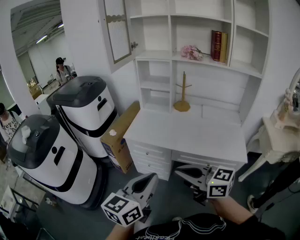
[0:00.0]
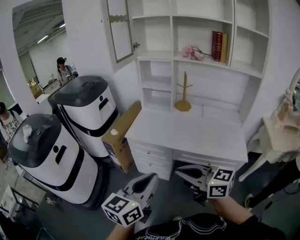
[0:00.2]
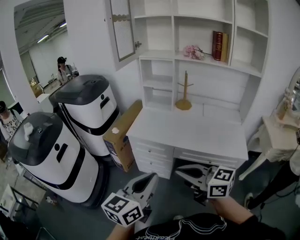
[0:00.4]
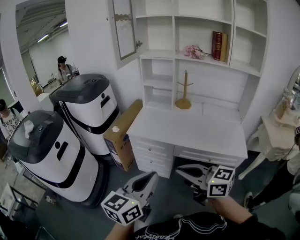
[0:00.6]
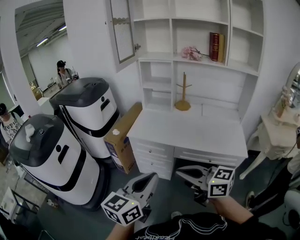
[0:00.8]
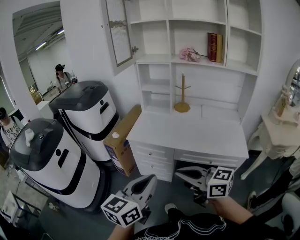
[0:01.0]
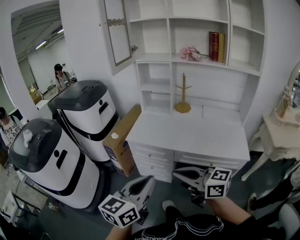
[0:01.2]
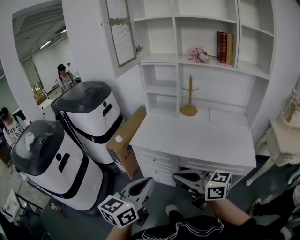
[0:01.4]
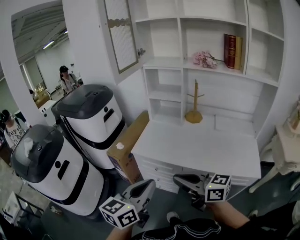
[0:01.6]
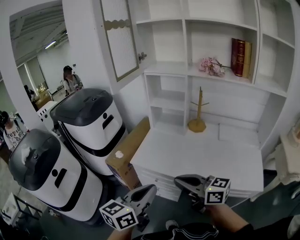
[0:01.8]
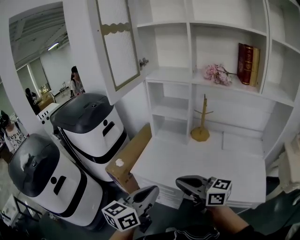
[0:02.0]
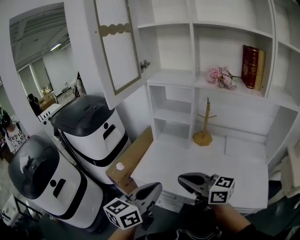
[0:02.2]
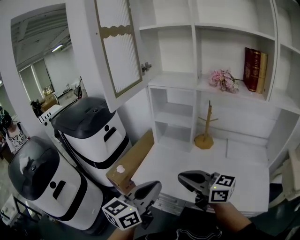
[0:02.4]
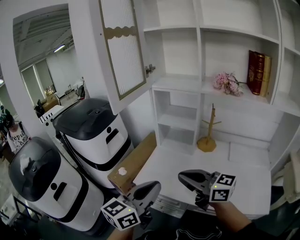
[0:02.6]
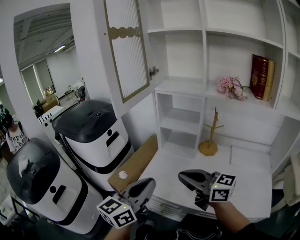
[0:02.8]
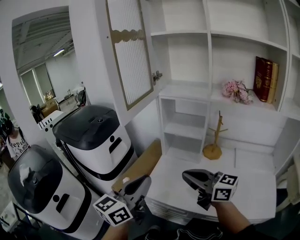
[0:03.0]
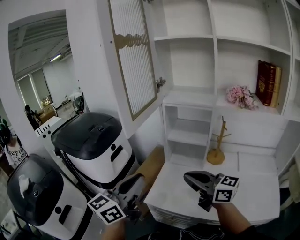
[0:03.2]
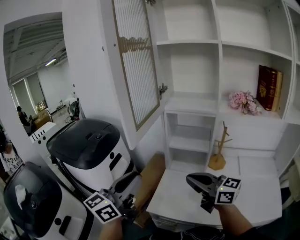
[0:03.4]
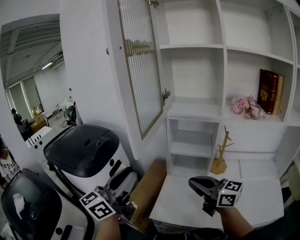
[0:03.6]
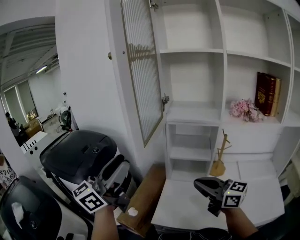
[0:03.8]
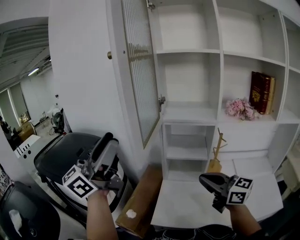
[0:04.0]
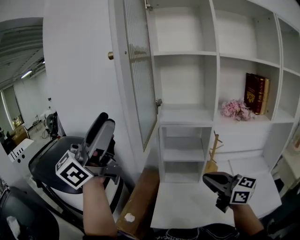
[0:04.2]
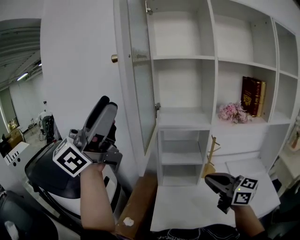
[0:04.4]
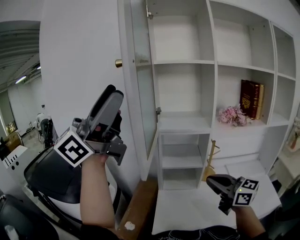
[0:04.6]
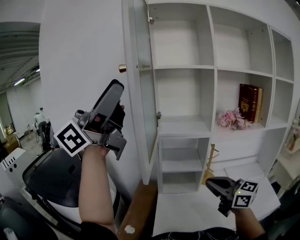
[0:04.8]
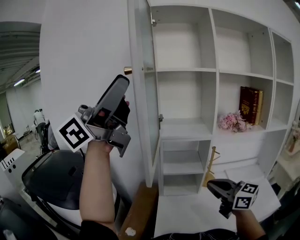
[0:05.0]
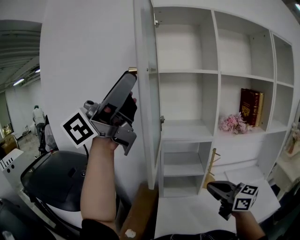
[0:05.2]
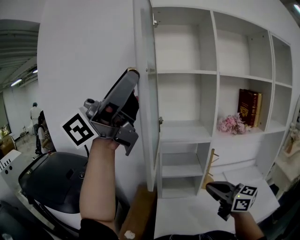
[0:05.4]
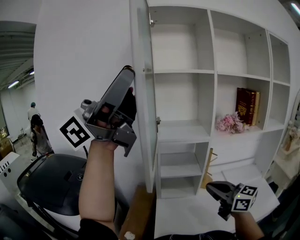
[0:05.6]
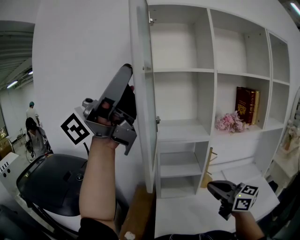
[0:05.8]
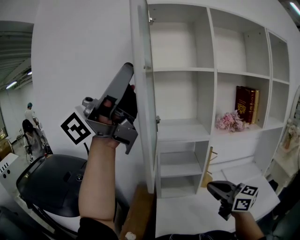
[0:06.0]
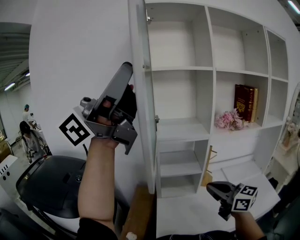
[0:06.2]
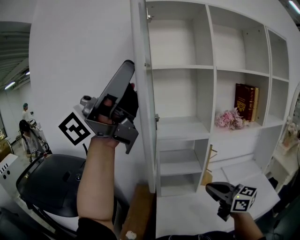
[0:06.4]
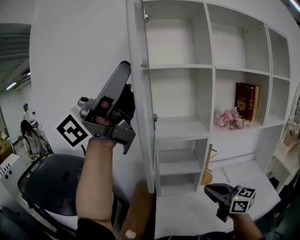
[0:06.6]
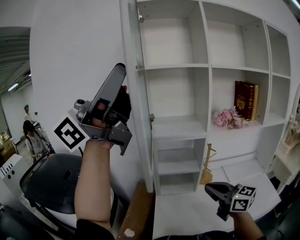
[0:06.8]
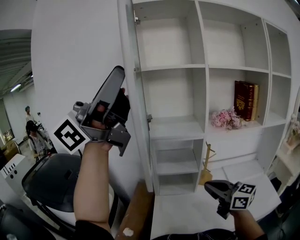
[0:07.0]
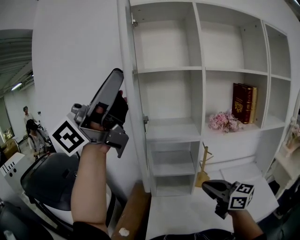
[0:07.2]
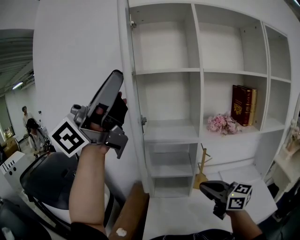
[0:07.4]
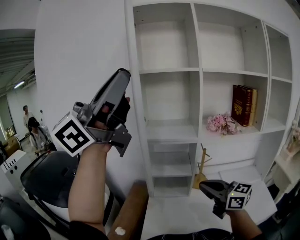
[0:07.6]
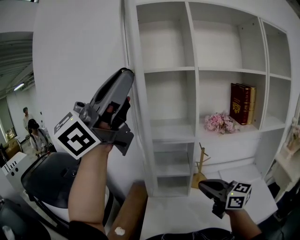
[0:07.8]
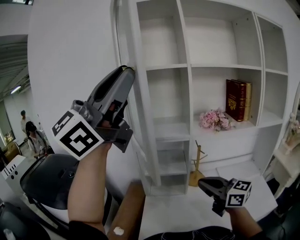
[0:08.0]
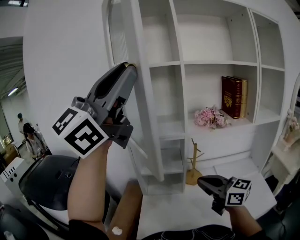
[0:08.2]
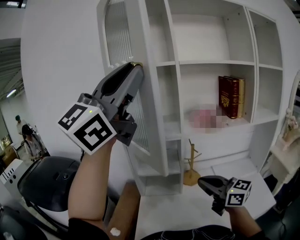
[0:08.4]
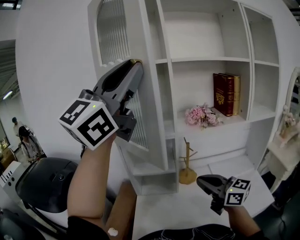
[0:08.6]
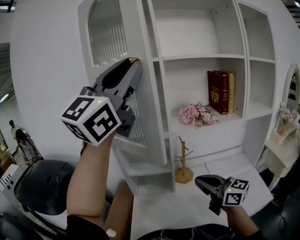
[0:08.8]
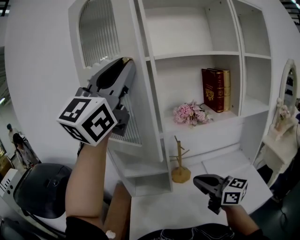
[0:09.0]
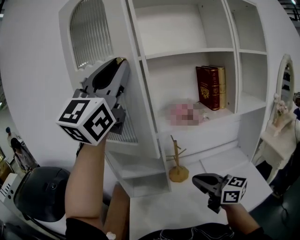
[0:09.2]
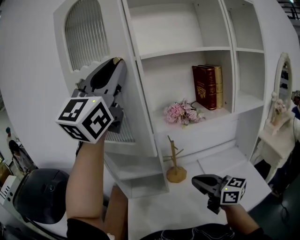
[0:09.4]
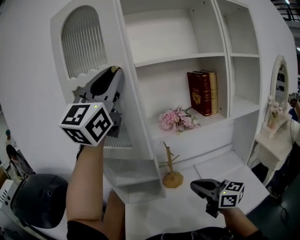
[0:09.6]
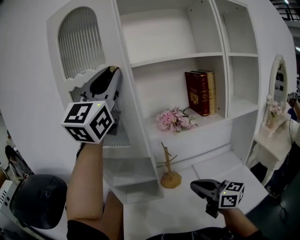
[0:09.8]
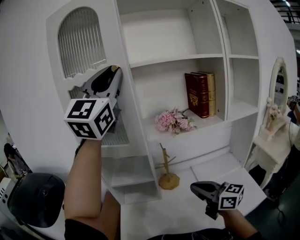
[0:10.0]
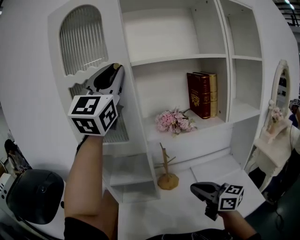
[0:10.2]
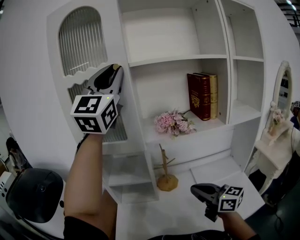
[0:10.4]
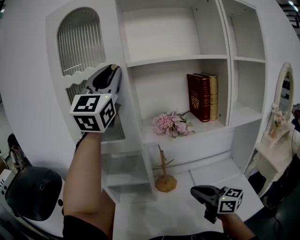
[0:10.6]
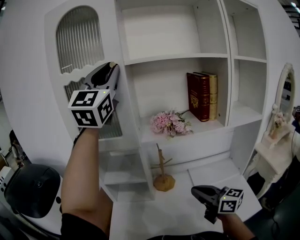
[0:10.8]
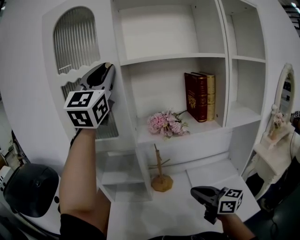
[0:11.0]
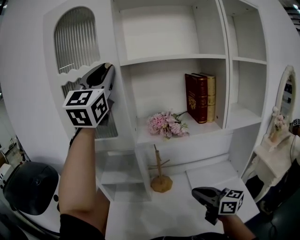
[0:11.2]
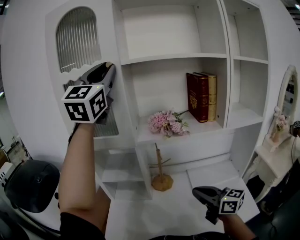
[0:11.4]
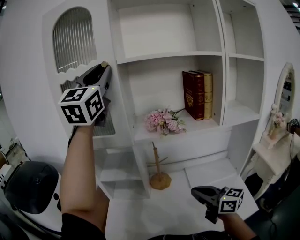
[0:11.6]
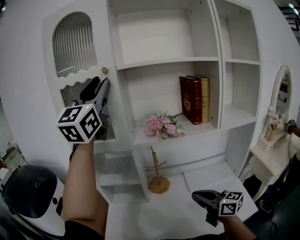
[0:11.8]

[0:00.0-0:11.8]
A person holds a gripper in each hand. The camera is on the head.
0.0 to 1.4 s: The right gripper moves about 5 cm; the left gripper changes place by approximately 5 cm.
1.4 to 3.0 s: The two grippers go some 35 cm forward.
3.0 to 4.4 s: The left gripper is displaced upward by about 30 cm, points its fingers some 40 degrees further upward, and opens; the right gripper ends up about 10 cm from where it was, and rotates some 30 degrees.
4.4 to 6.0 s: The left gripper shifts roughly 10 cm upward, rotates approximately 30 degrees, and closes up.
6.0 to 7.4 s: The left gripper shifts by some 5 cm.
7.4 to 8.8 s: The right gripper is displaced to the right by some 10 cm, while the left gripper shifts about 20 cm to the right and forward, and swivels approximately 30 degrees.
8.8 to 10.4 s: The right gripper is displaced to the right by about 10 cm. Meanwhile the left gripper heads forward and to the right, covering about 15 cm, and rotates approximately 20 degrees.
10.4 to 11.8 s: The right gripper shifts some 5 cm to the right.

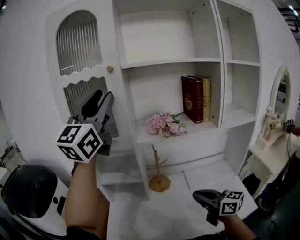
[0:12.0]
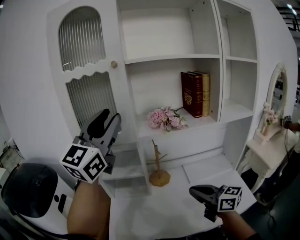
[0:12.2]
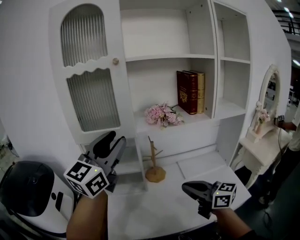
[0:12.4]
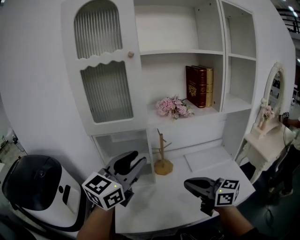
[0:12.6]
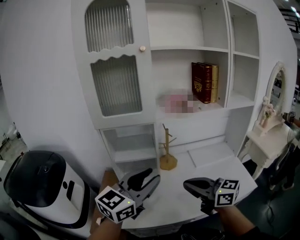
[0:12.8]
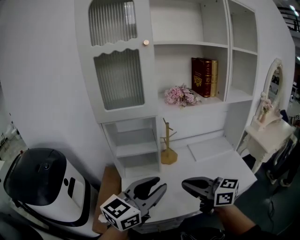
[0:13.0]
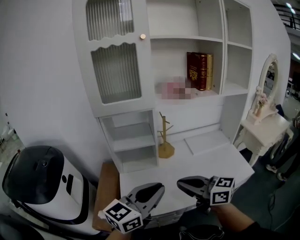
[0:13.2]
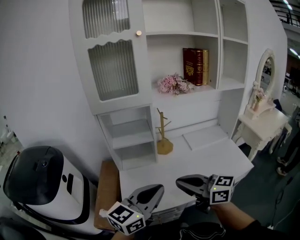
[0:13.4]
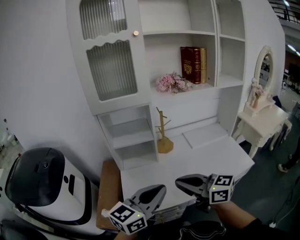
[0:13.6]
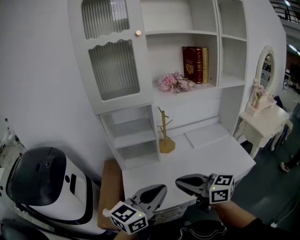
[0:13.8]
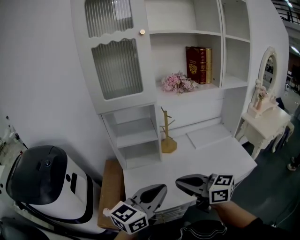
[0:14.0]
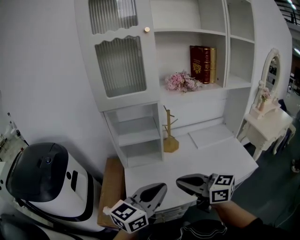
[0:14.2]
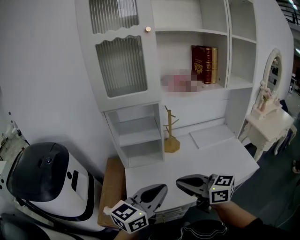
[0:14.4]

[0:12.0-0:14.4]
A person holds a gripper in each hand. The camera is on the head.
12.0 to 13.2 s: The right gripper heads to the left and backward, covering roughly 25 cm. The left gripper goes roughly 40 cm downward and backward, and swivels about 50 degrees.
13.2 to 14.4 s: The grippers move only a little.

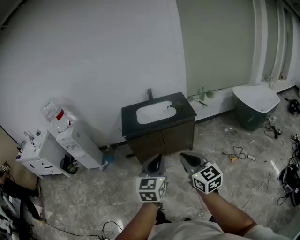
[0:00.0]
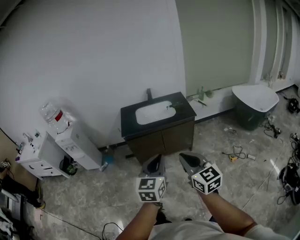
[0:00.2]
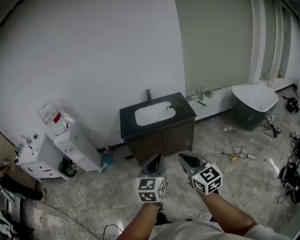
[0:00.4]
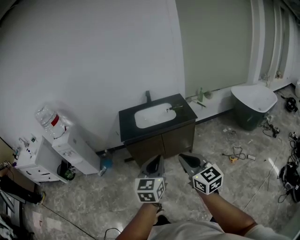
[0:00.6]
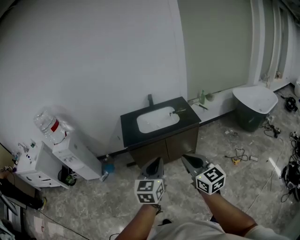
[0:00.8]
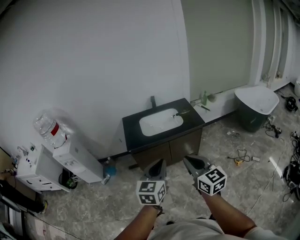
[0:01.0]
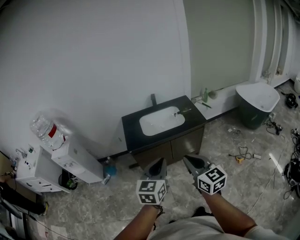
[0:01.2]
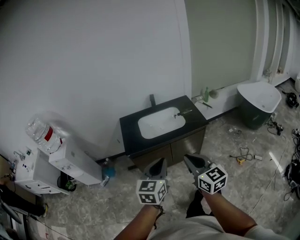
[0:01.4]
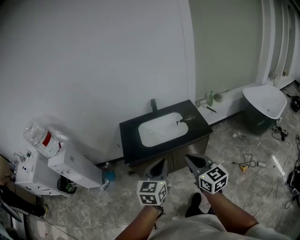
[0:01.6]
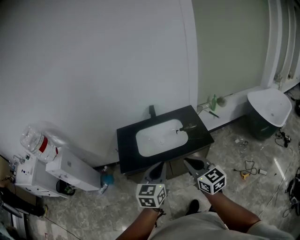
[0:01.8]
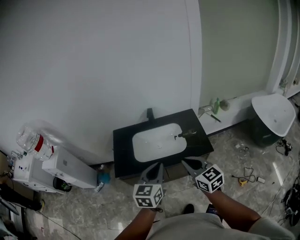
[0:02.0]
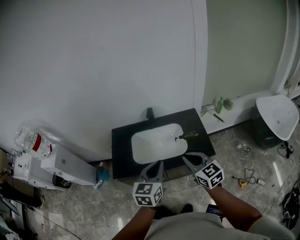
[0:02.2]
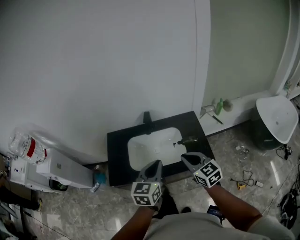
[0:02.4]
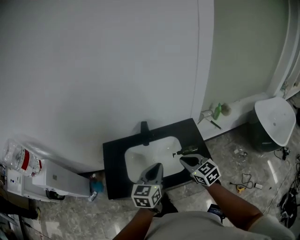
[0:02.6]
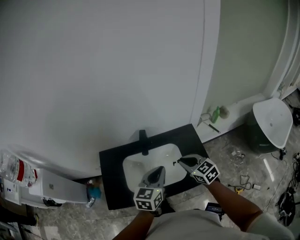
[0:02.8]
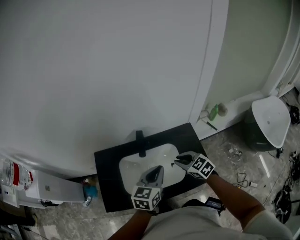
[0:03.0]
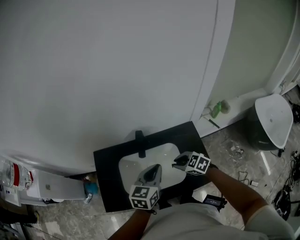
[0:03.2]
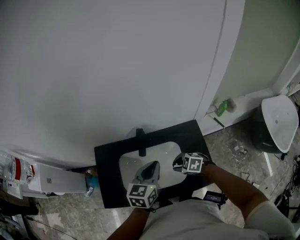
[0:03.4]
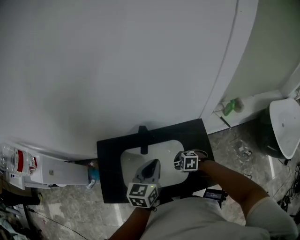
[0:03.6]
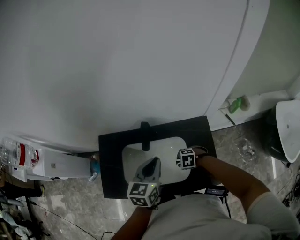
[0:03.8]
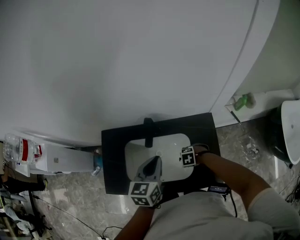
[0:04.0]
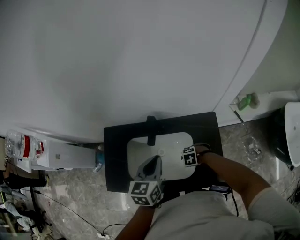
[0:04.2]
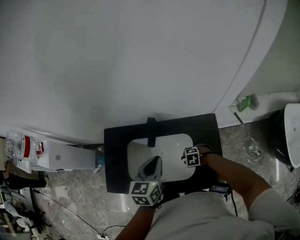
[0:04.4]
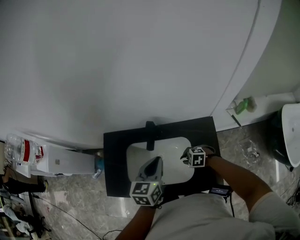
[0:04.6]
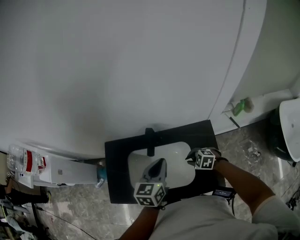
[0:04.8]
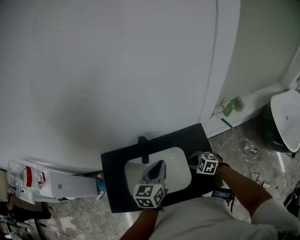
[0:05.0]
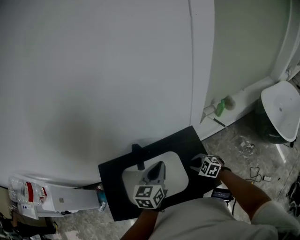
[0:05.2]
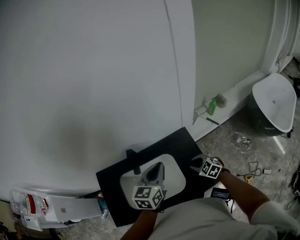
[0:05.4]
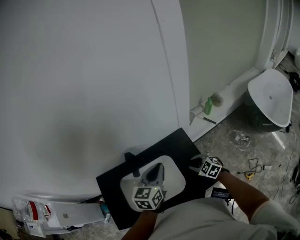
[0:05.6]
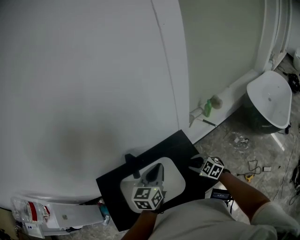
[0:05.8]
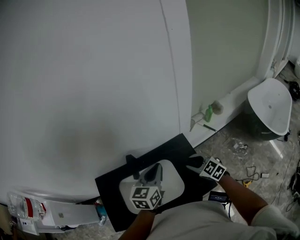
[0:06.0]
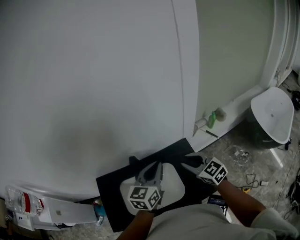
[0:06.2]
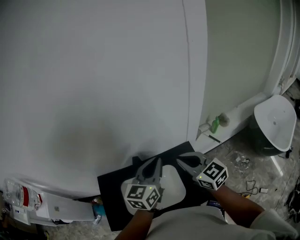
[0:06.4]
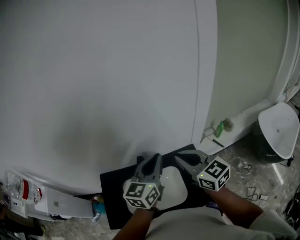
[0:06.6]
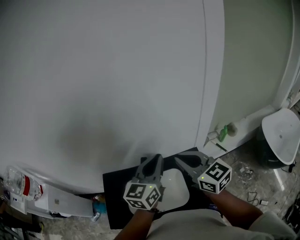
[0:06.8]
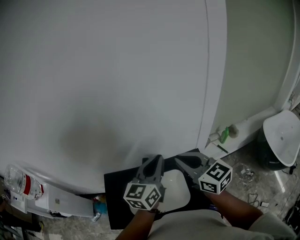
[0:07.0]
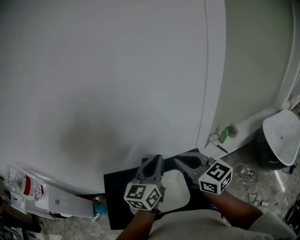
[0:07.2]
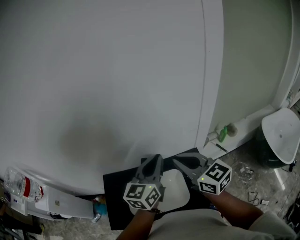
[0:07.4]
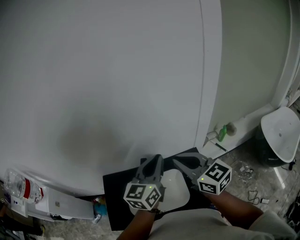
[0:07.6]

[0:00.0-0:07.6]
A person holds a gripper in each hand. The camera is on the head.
0.0 to 1.6 s: The grippers both shift forward by some 35 cm.
1.6 to 3.0 s: The two grippers travel together, forward, approximately 50 cm. The right gripper tilts its fingers about 30 degrees downward.
3.0 to 4.6 s: The left gripper changes place by about 10 cm, and swivels approximately 20 degrees. Meanwhile the right gripper heads downward, covering some 20 cm, and changes its angle by approximately 50 degrees.
4.6 to 6.0 s: The right gripper travels upward by approximately 20 cm, and rotates roughly 60 degrees. Meanwhile the left gripper shifts by approximately 15 cm, and turns by roughly 20 degrees.
6.0 to 7.6 s: The left gripper shifts roughly 15 cm upward, while the right gripper moves upward and to the left, about 30 cm, swivels about 30 degrees, and closes up.

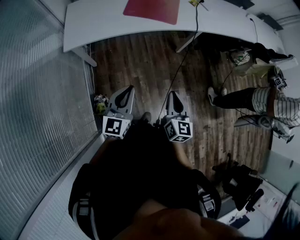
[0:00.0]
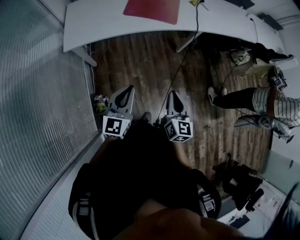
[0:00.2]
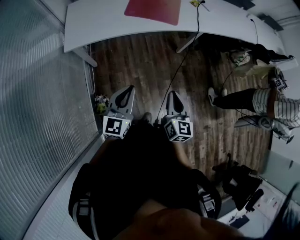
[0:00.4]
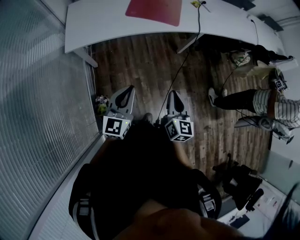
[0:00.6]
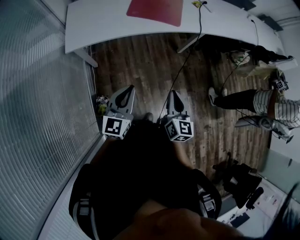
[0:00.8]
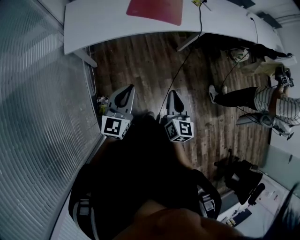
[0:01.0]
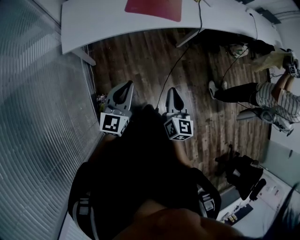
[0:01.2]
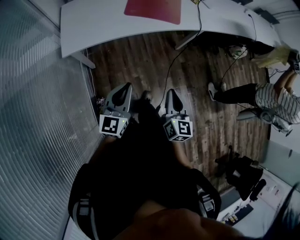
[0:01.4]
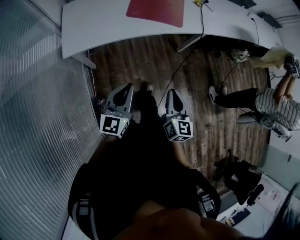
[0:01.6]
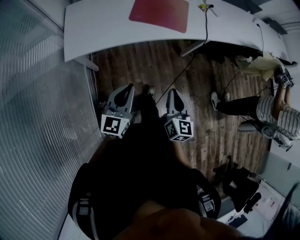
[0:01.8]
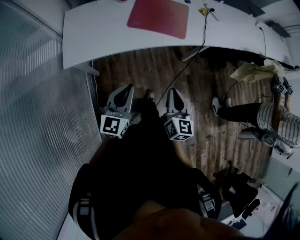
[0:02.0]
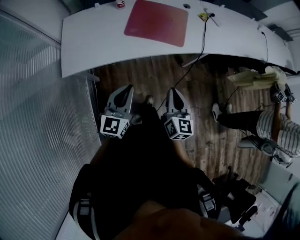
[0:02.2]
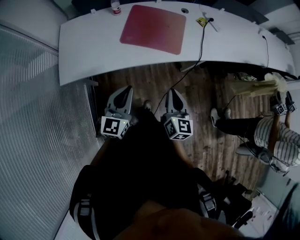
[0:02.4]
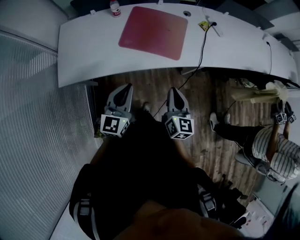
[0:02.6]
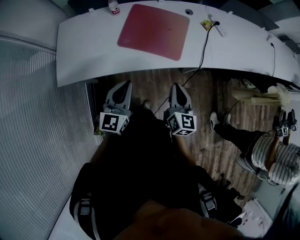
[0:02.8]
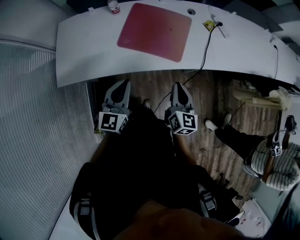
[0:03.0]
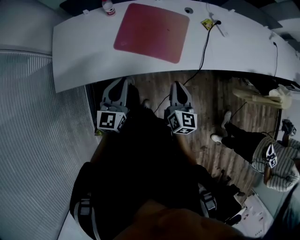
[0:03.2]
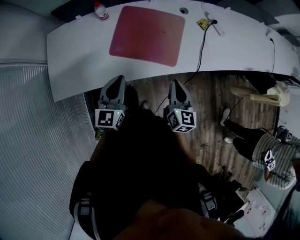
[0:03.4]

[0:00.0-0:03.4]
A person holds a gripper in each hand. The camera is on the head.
0.0 to 1.6 s: The two grippers go about 10 cm to the left and forward.
1.6 to 3.4 s: The pair of grippers is taken forward, approximately 50 cm.
